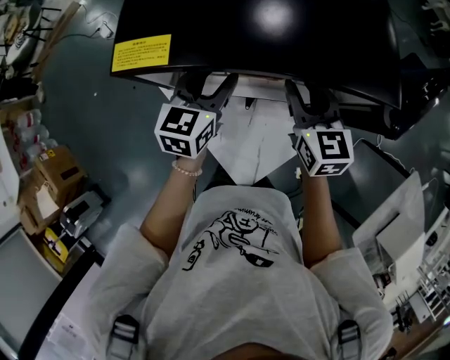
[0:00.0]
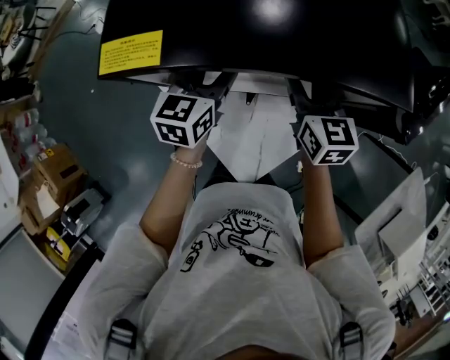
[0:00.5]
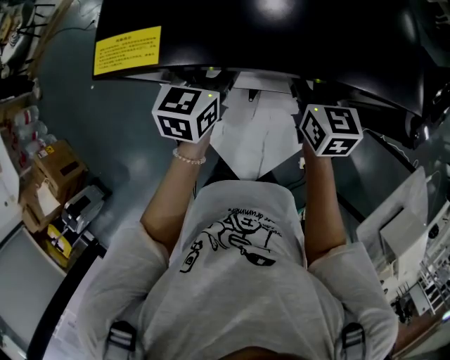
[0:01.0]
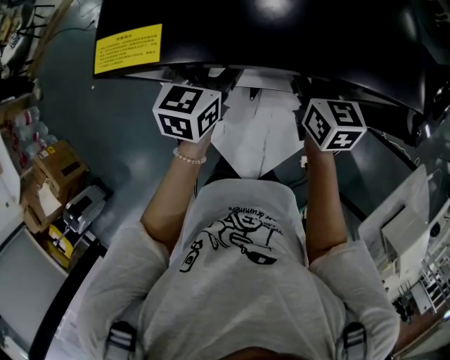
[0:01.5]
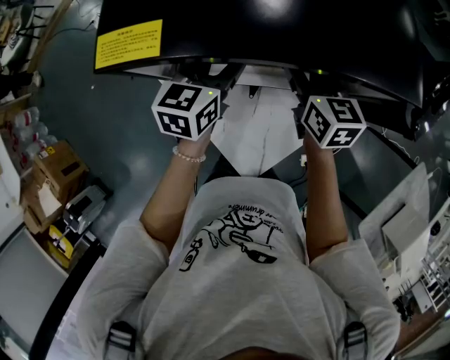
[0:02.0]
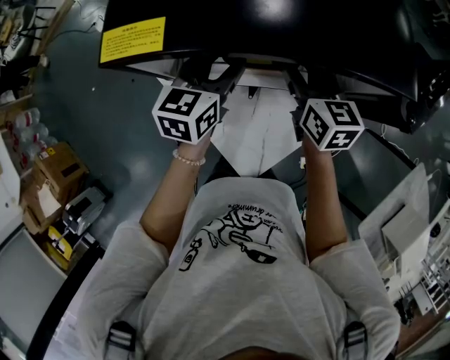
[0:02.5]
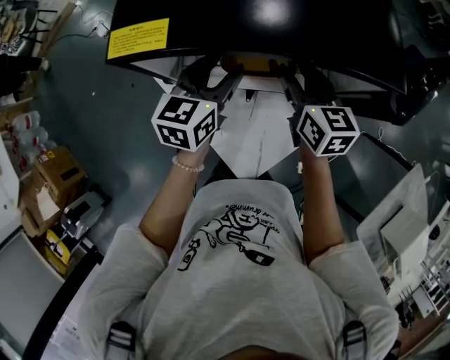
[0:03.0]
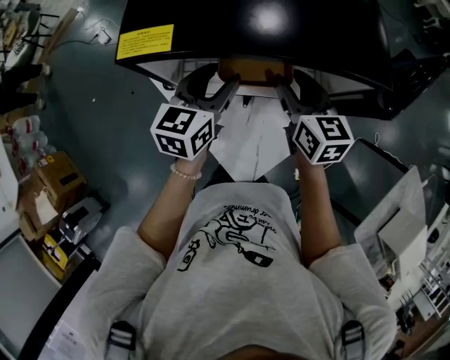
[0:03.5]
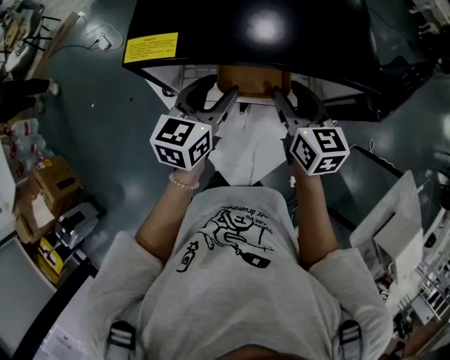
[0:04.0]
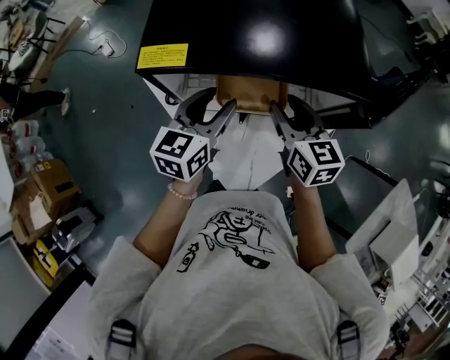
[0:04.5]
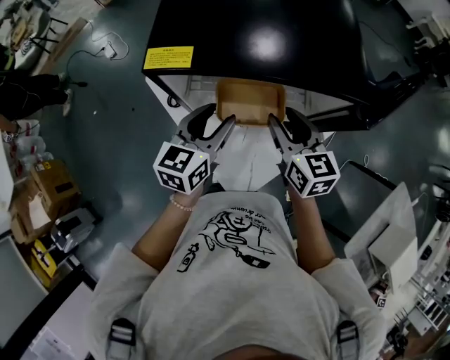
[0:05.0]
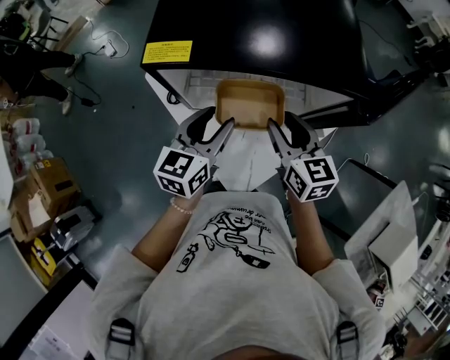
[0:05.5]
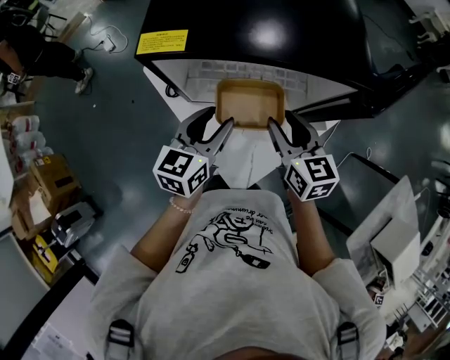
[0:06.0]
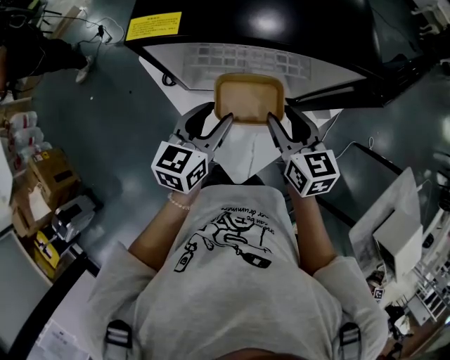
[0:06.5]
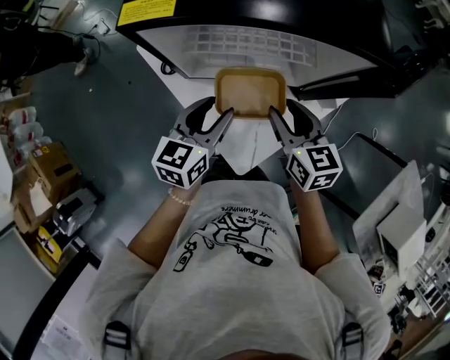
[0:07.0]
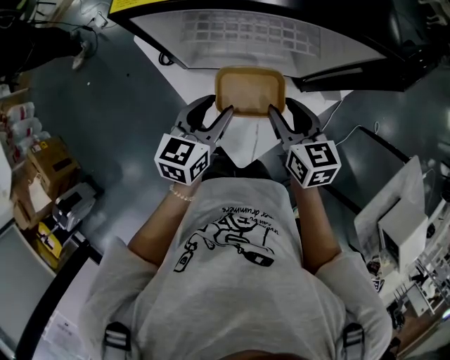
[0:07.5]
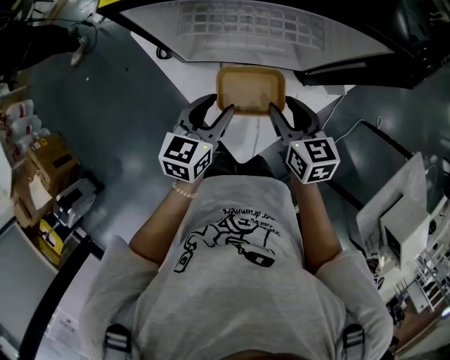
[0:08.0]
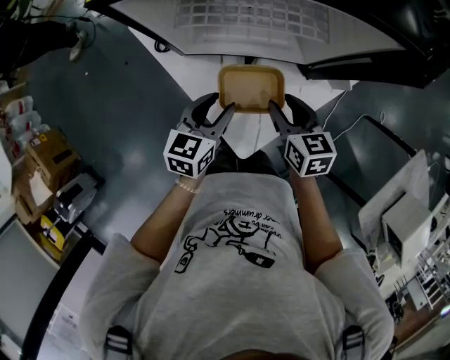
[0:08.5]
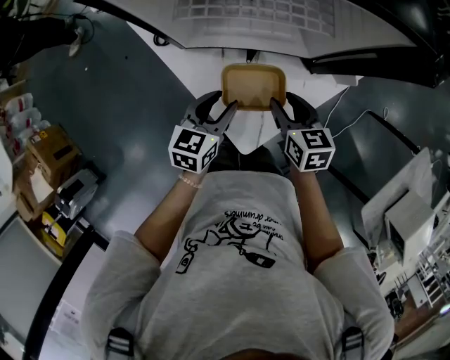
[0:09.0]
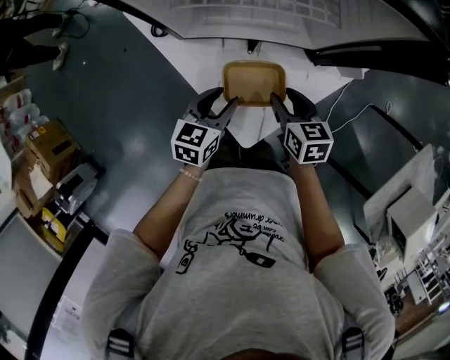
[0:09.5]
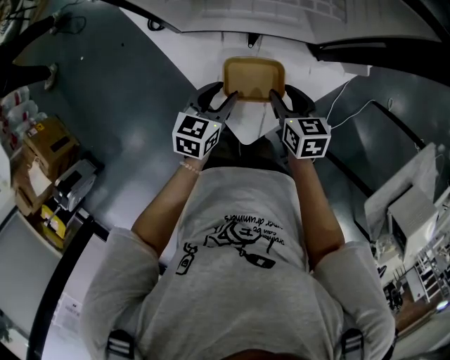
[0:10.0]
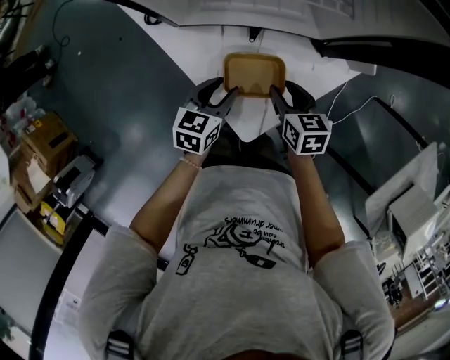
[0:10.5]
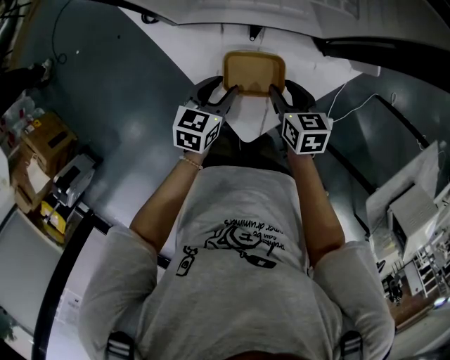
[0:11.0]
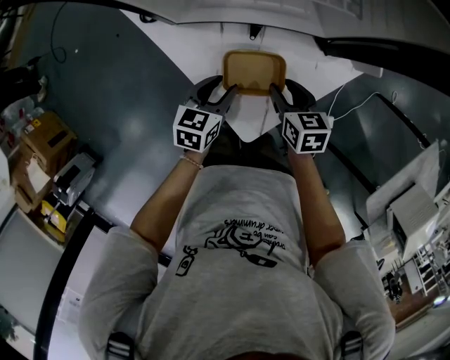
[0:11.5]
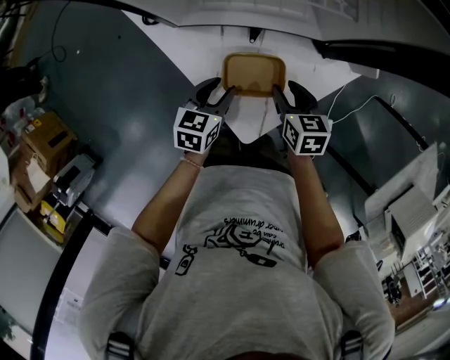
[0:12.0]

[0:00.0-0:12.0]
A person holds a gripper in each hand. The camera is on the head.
0:00.0 to 0:02.0: The right gripper changes place by roughly 5 cm.
0:02.0 to 0:04.0: The two grippers go some 10 cm backward and upward.
0:04.0 to 0:06.0: Both grippers travel together backward, about 10 cm.
0:06.0 to 0:08.0: Both grippers travel together downward and backward, some 10 cm.
0:08.0 to 0:10.0: Both grippers move downward, about 15 cm.
0:10.0 to 0:12.0: There are only small adjustments of the grippers.

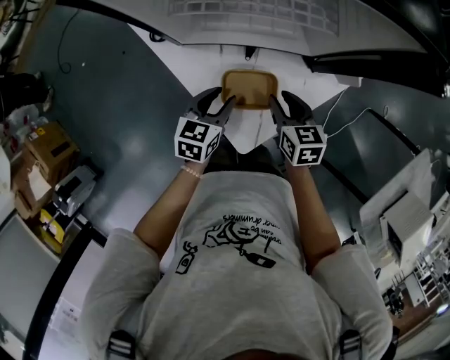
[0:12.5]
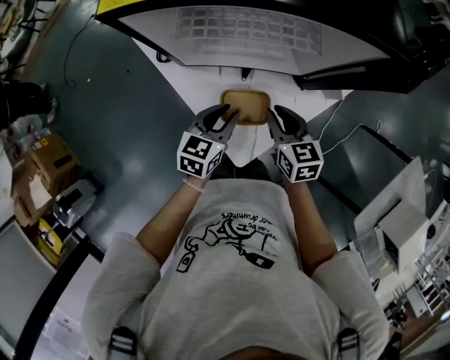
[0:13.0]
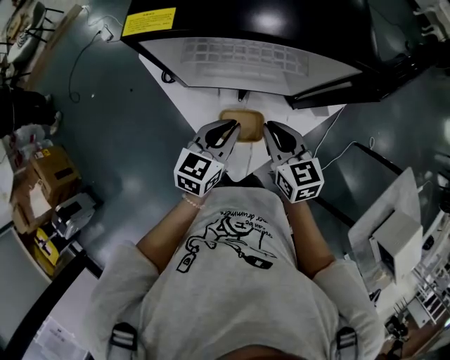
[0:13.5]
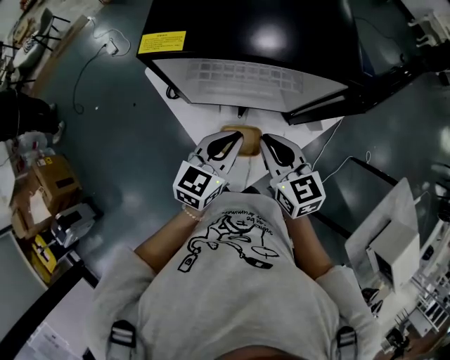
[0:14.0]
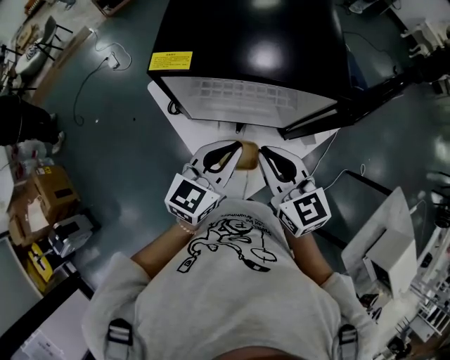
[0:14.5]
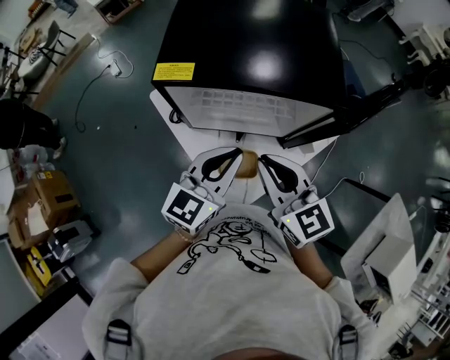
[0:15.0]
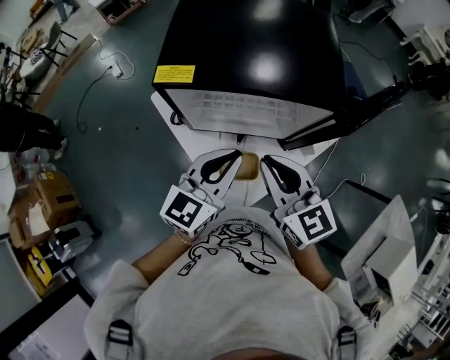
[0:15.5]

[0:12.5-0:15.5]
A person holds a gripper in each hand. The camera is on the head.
0:12.5 to 0:14.0: Both grippers travel together upward, some 20 cm. The left gripper turns by some 20 degrees, and closes its fingers. Meanwhile the right gripper changes its angle by some 20 degrees, and closes its fingers.
0:14.0 to 0:15.5: The two grippers go roughly 10 cm upward.

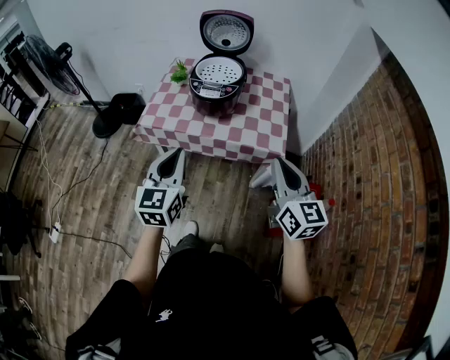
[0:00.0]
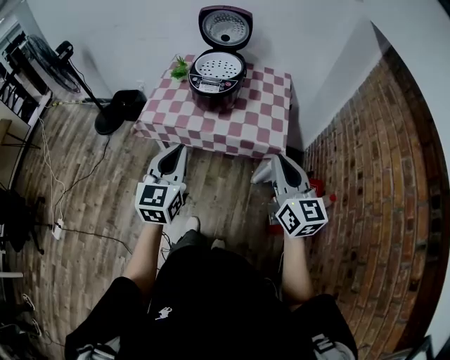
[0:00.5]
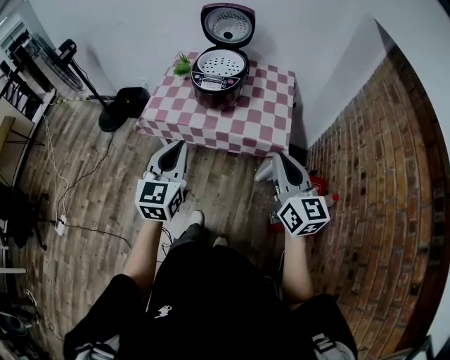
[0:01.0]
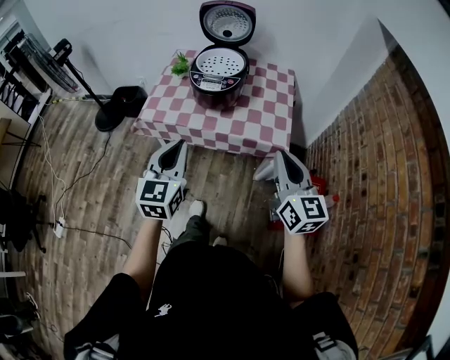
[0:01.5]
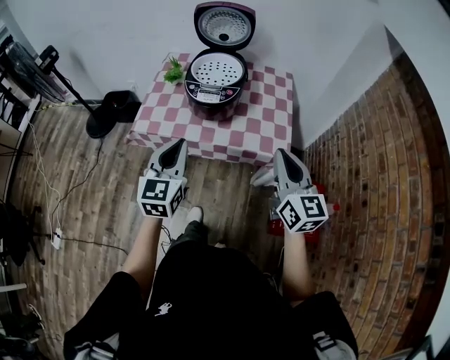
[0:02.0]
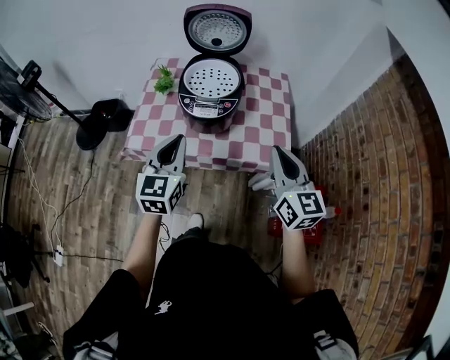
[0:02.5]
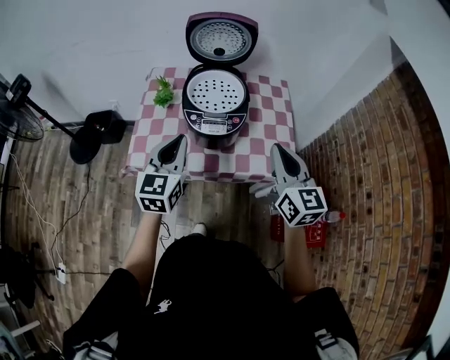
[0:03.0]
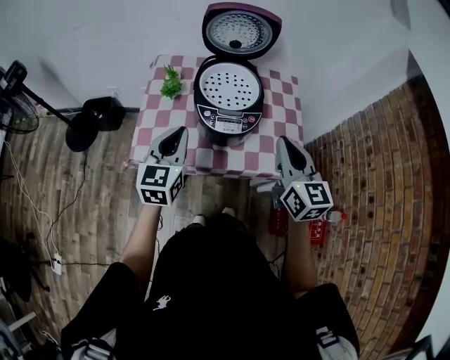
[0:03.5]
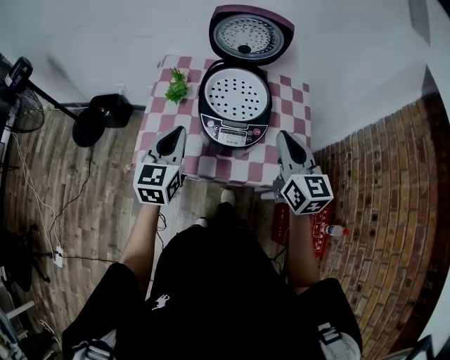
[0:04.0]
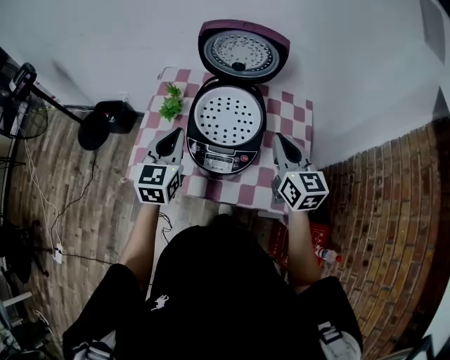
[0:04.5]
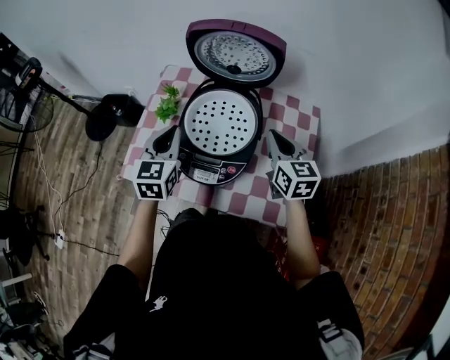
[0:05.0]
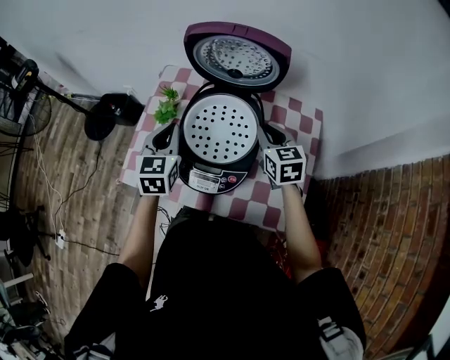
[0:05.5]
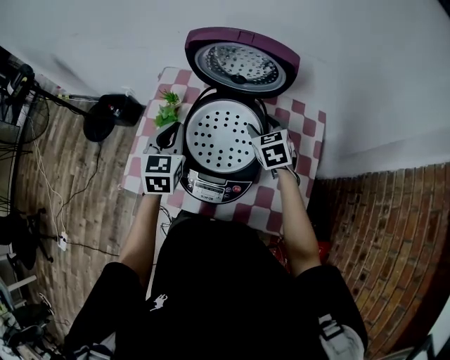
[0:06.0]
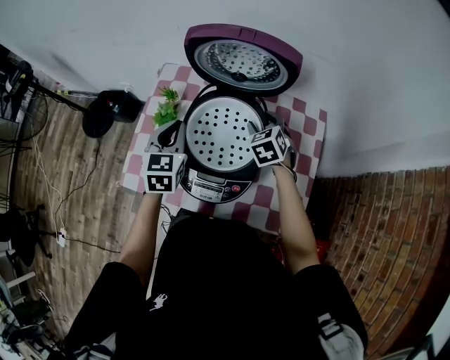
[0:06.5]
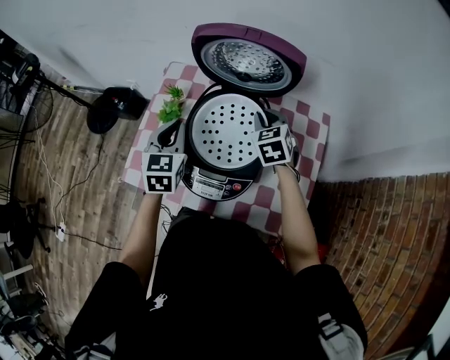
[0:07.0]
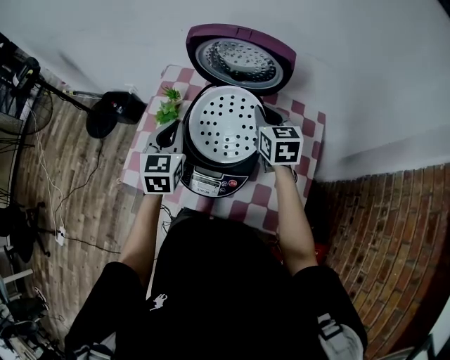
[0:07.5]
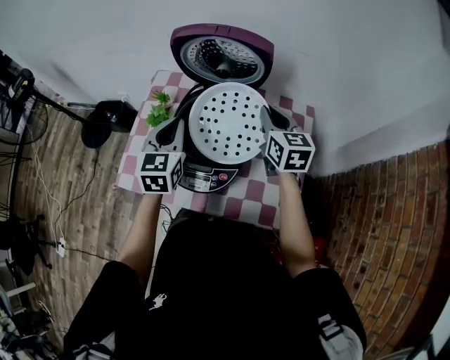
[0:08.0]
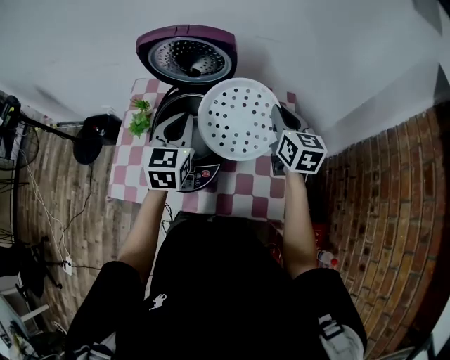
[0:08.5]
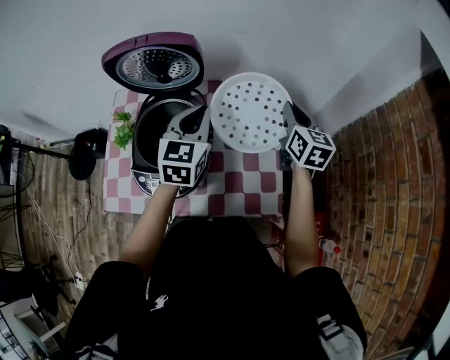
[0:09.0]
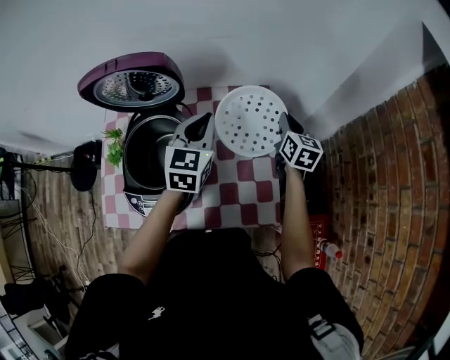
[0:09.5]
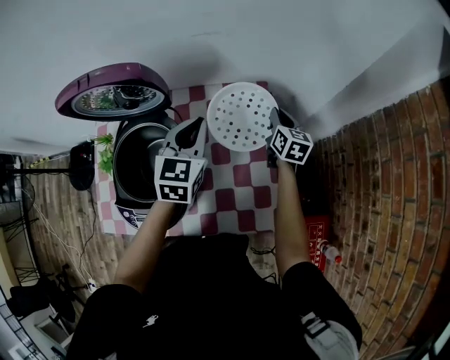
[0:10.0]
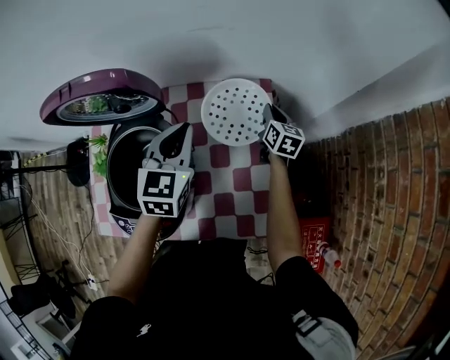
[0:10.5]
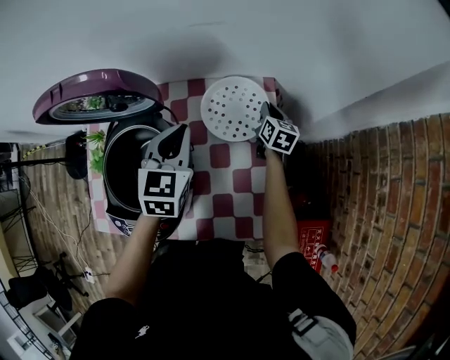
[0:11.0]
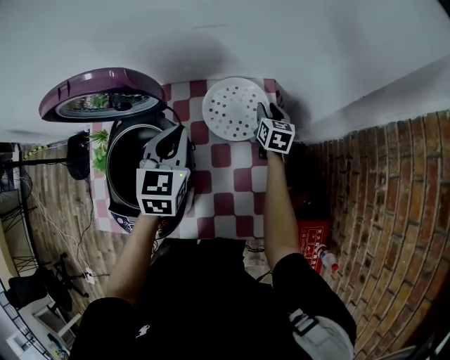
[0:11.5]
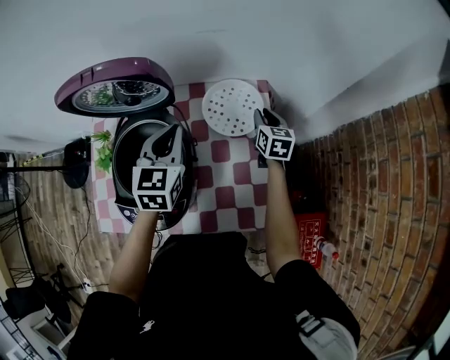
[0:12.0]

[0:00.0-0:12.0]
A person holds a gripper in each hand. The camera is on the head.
0:00.0 to 0:02.0: Both grippers move forward, roughly 10 cm.
0:02.0 to 0:04.0: Both grippers move forward and to the left, some 25 cm.
0:04.0 to 0:06.0: The left gripper travels forward by about 20 cm. The right gripper travels forward and downward by some 30 cm, angles its fingers downward, by approximately 30 degrees, and opens.
0:06.0 to 0:08.0: The right gripper is displaced upward by some 10 cm, turns by some 30 degrees, and closes. Meanwhile the left gripper changes place by about 5 cm.
0:08.0 to 0:10.0: The left gripper shifts roughly 30 cm to the right and forward, and changes its angle by approximately 20 degrees; the right gripper travels to the right and downward by approximately 30 cm, and changes its angle by roughly 30 degrees.
0:10.0 to 0:12.0: The grippers both shift to the left by roughly 5 cm. The right gripper reaches some 10 cm downward, then returns.
